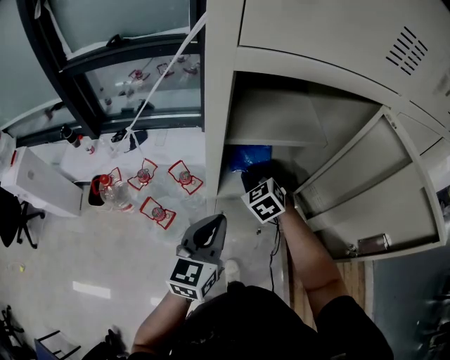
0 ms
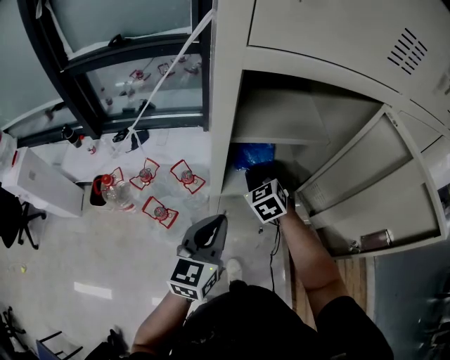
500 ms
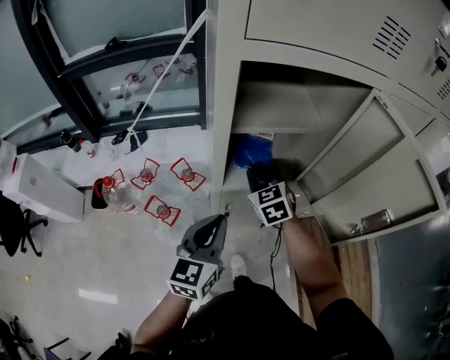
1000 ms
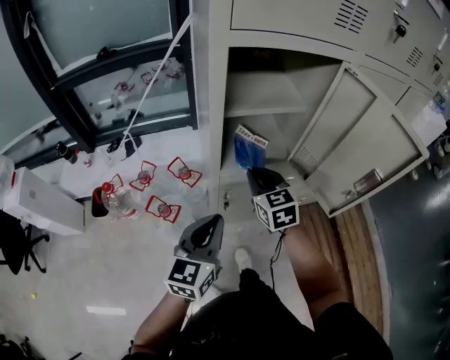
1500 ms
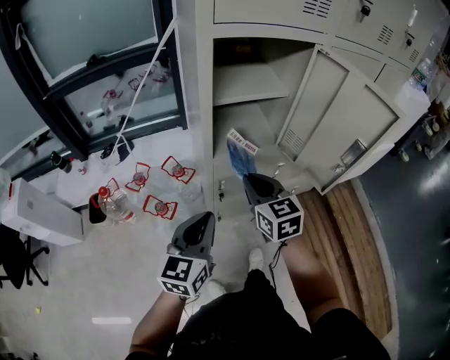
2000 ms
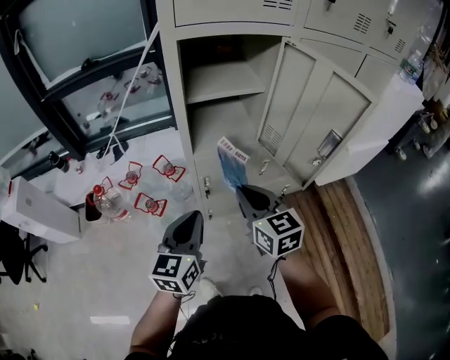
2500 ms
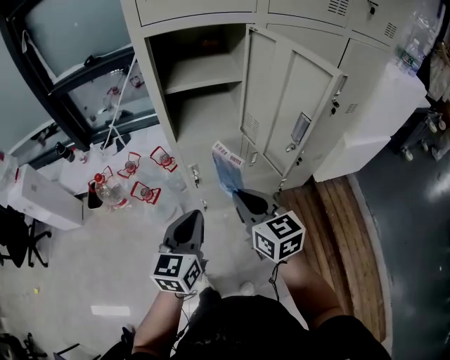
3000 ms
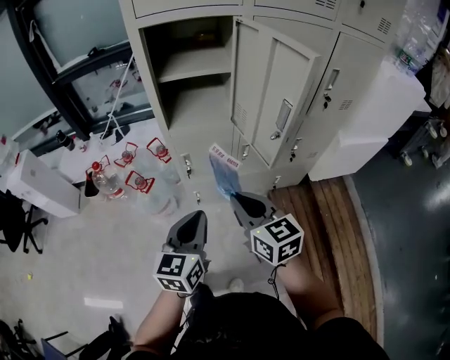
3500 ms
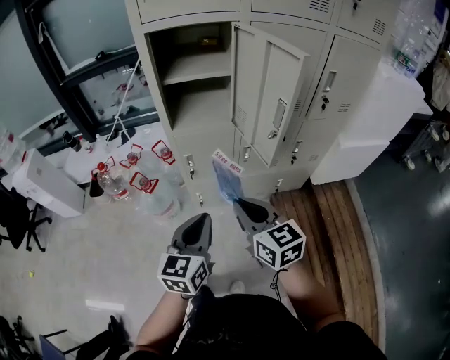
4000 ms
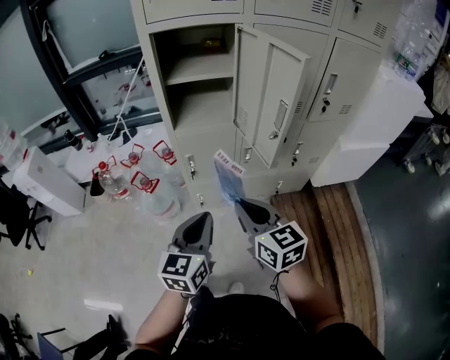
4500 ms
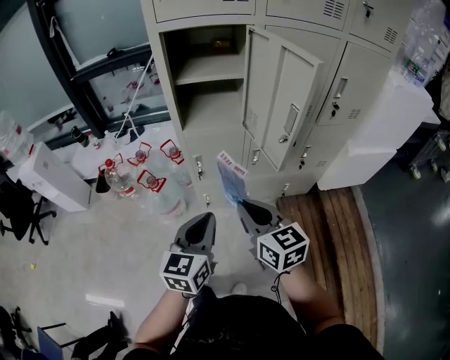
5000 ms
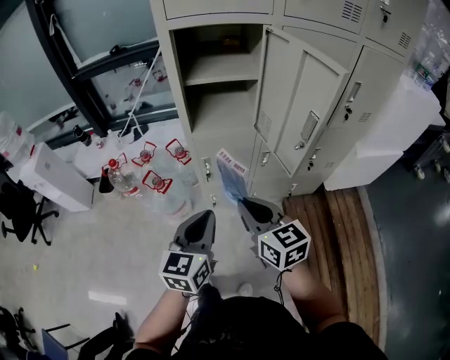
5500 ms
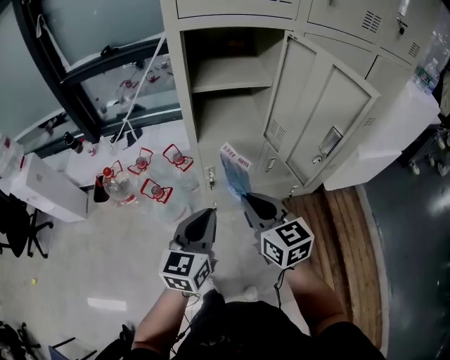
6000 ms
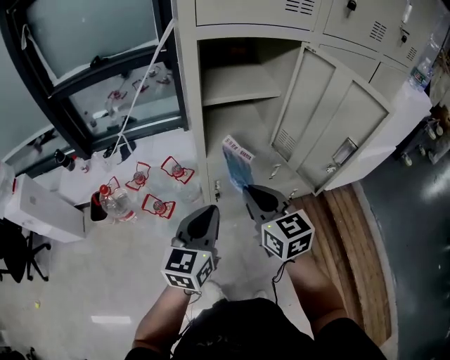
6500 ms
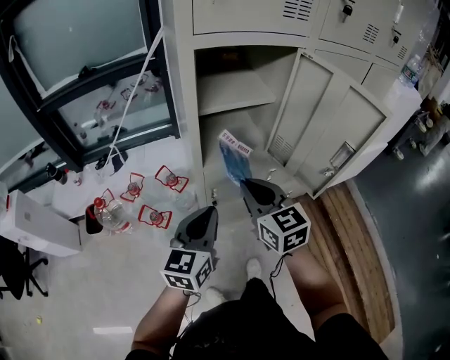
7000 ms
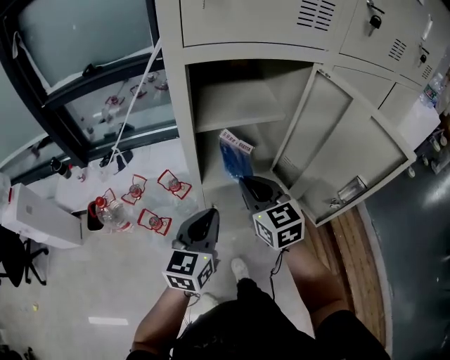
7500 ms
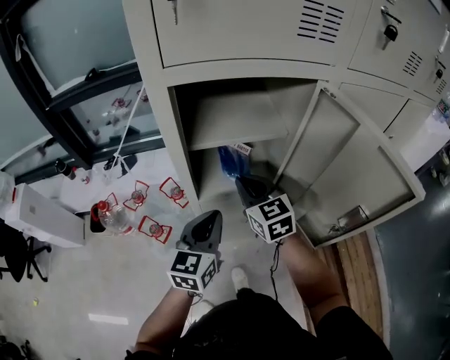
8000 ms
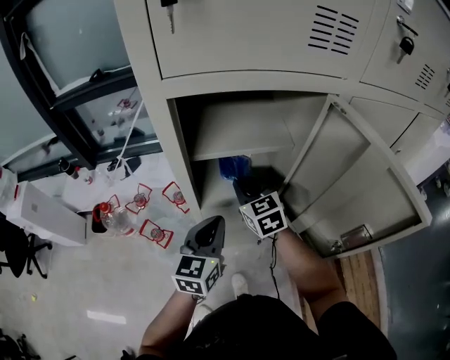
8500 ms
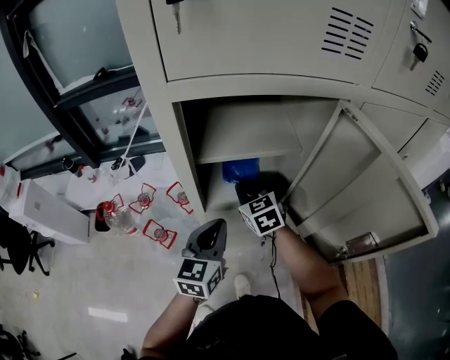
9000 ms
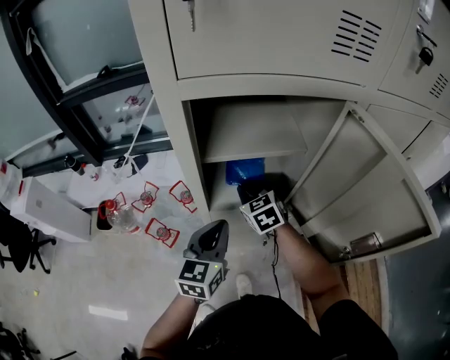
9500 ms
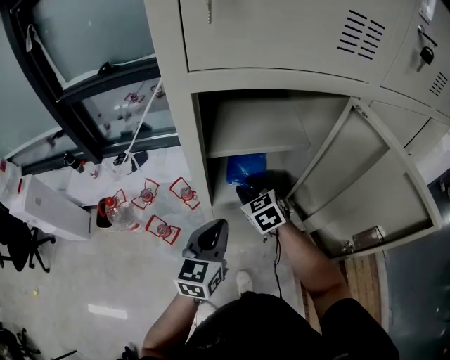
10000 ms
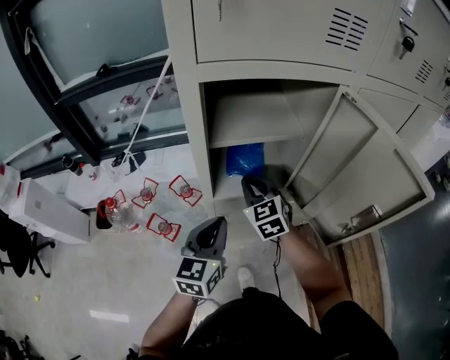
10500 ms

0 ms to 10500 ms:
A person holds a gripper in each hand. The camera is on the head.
0 ms to 2000 ms: The right gripper travels backward and upward by some 25 cm, and swivels approximately 40 degrees, while the left gripper is displaced backward by some 15 cm.
2000 ms to 4000 ms: The left gripper moves to the right and backward, about 25 cm. The right gripper heads backward and to the right, covering some 30 cm.
4000 ms to 6500 ms: The grippers both shift forward and to the left by approximately 20 cm.
6500 ms to 8500 ms: The grippers both shift forward by some 20 cm.
8500 ms to 10500 ms: The right gripper opens and closes again. Meanwhile the left gripper moves approximately 5 cm.

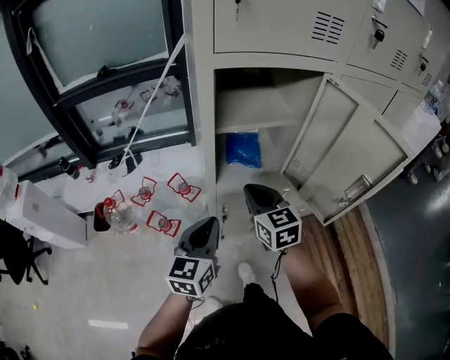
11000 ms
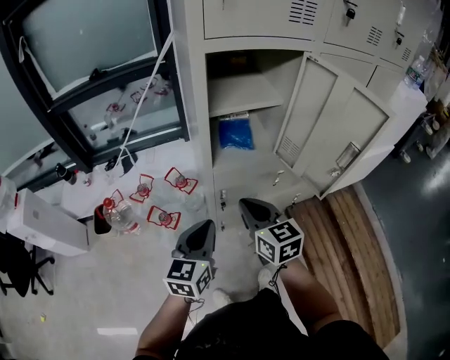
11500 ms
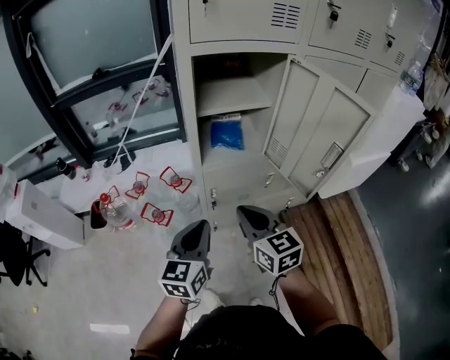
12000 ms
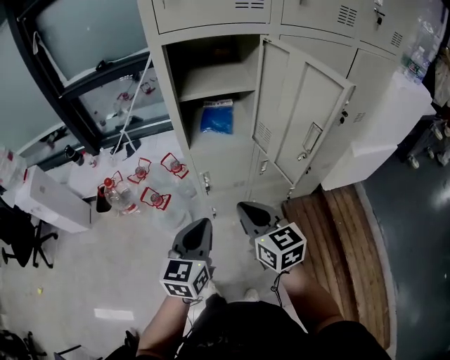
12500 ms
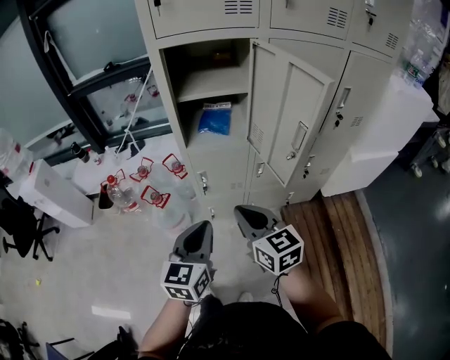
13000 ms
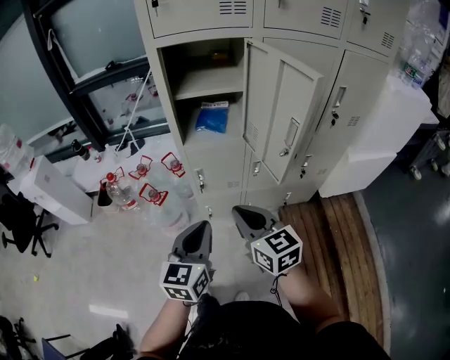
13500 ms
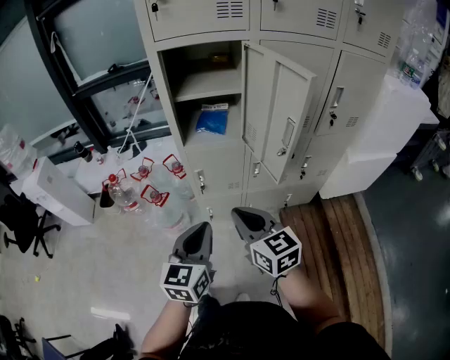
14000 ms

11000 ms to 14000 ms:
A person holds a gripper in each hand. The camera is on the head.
11000 ms to 12500 ms: The right gripper shifts roughly 20 cm backward. The left gripper is displaced backward and to the right by some 15 cm.
12500 ms to 14000 ms: The right gripper goes about 5 cm backward; the left gripper travels backward and to the right by approximately 10 cm.

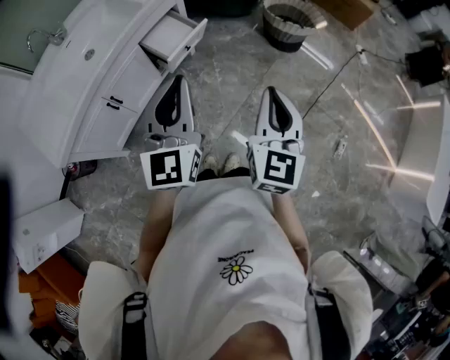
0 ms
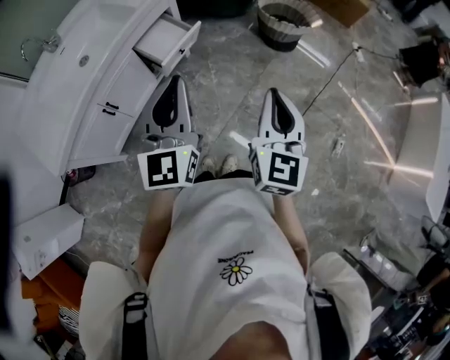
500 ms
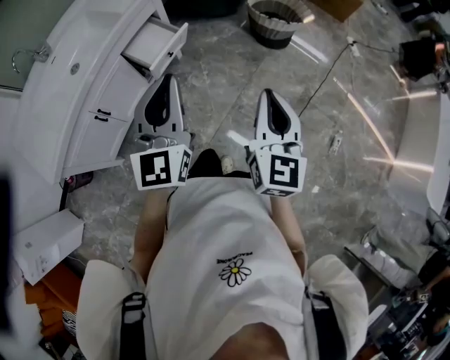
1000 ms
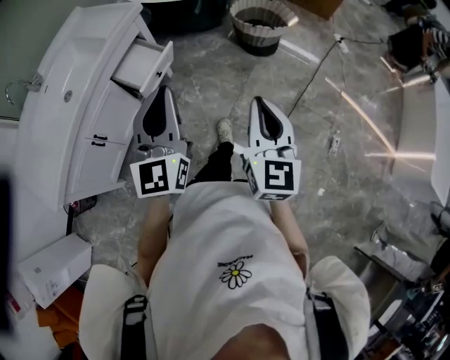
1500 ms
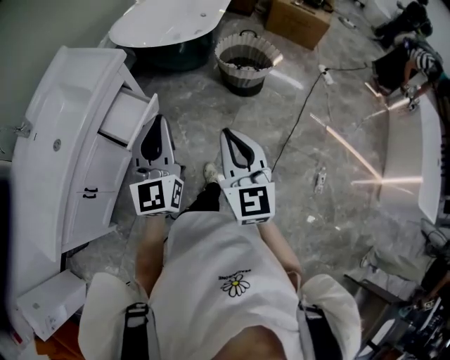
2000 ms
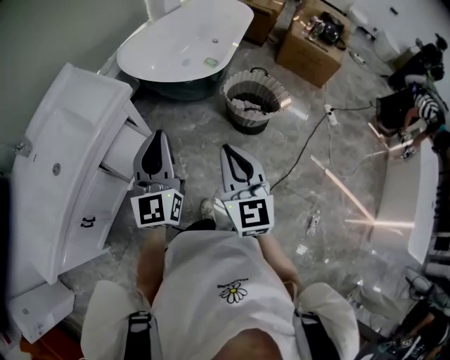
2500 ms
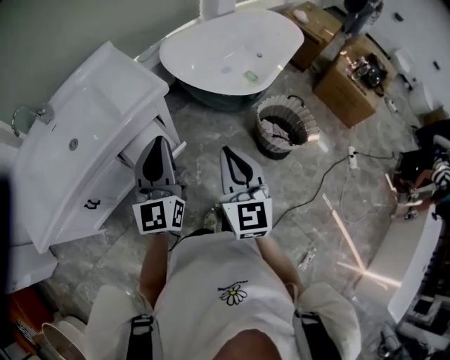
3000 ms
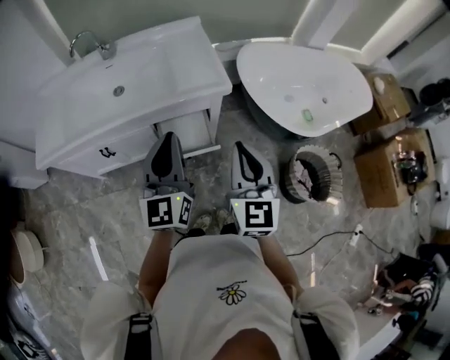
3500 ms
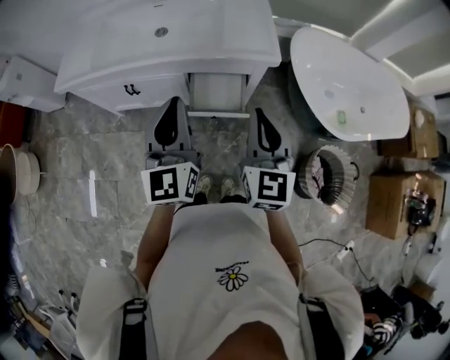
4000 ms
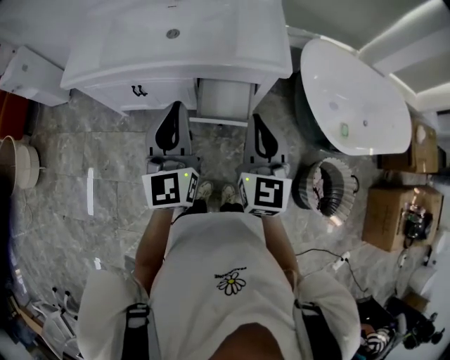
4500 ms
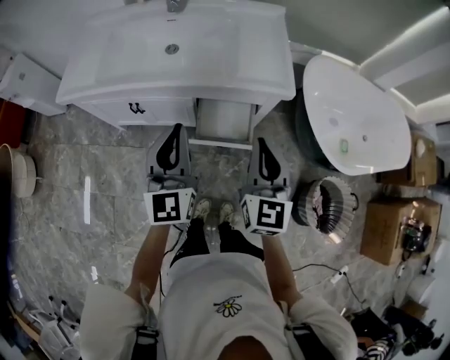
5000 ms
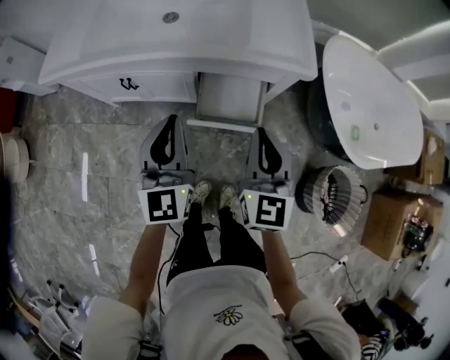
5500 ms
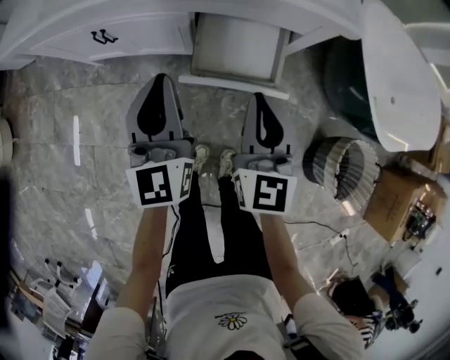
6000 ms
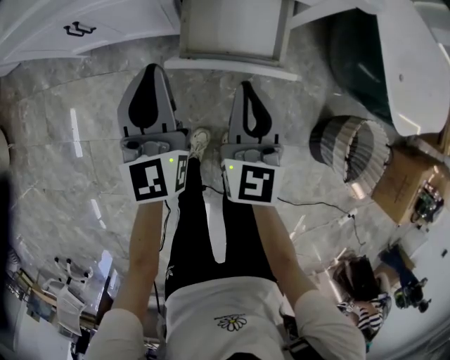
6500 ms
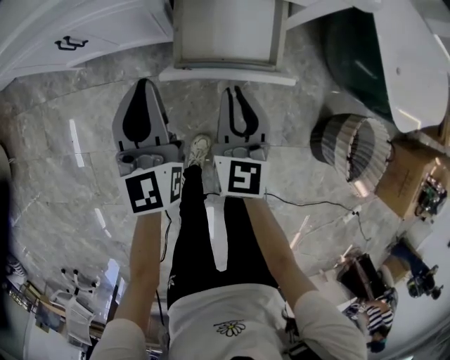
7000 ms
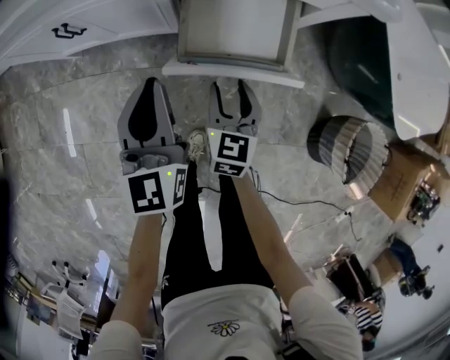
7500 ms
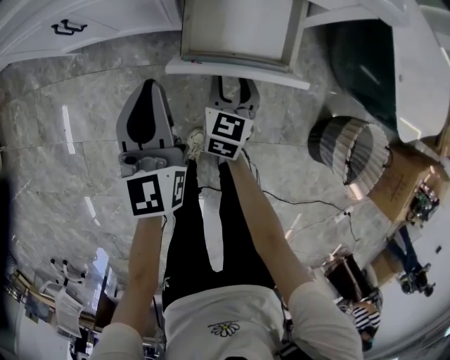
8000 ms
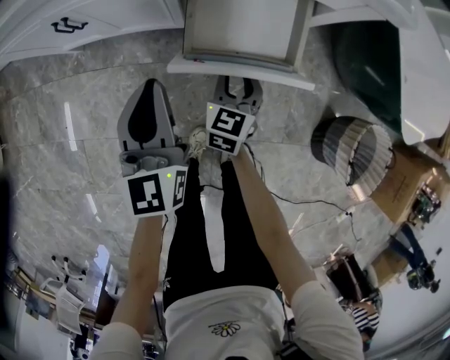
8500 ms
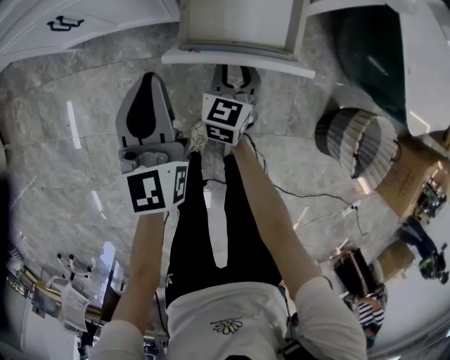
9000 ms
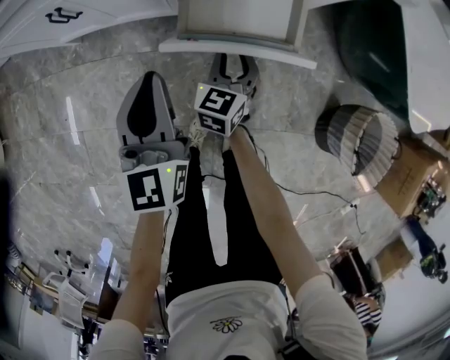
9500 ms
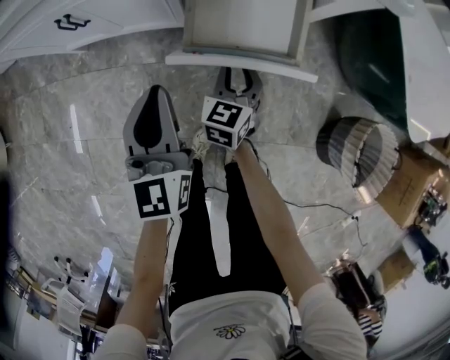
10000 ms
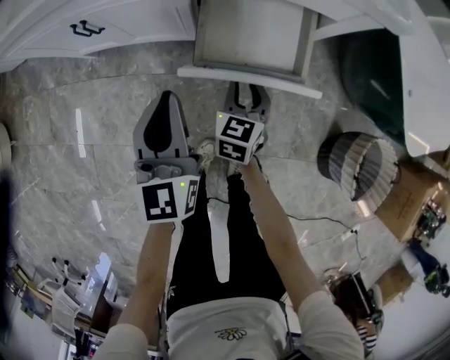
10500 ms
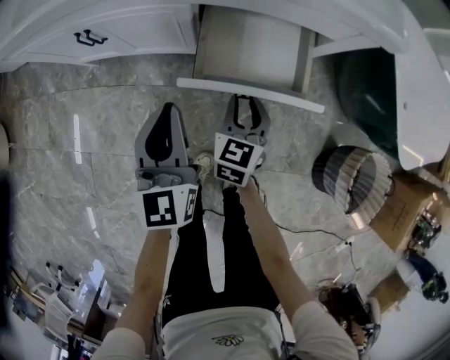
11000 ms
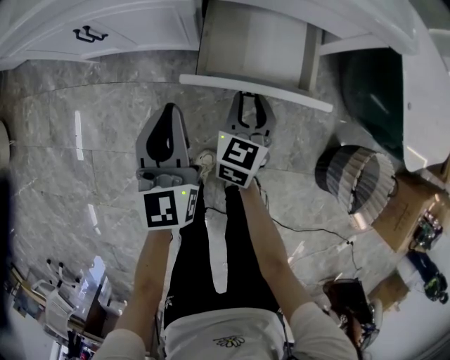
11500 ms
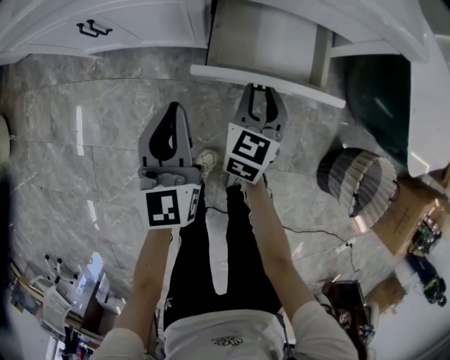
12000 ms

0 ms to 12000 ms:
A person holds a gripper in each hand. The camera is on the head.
0 ms to 2000 ms: The left gripper goes some 20 cm forward and to the right; the right gripper goes roughly 15 cm forward.
2000 ms to 4000 ms: The right gripper ends up roughly 30 cm from where it was, and rotates about 50 degrees. Meanwhile the left gripper shifts by approximately 20 cm, and turns by about 70 degrees.
4000 ms to 6000 ms: The two grippers go about 25 cm downward.
6000 ms to 8000 ms: The right gripper moves downward, about 25 cm, swivels some 30 degrees, and opens its fingers, while the left gripper moves downward, about 10 cm.
8000 ms to 10000 ms: There are only small adjustments of the grippers.
10000 ms to 12000 ms: The right gripper shifts by roughly 5 cm.

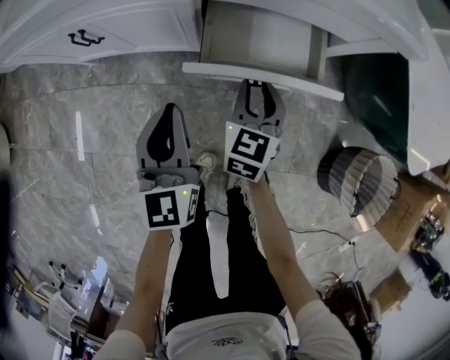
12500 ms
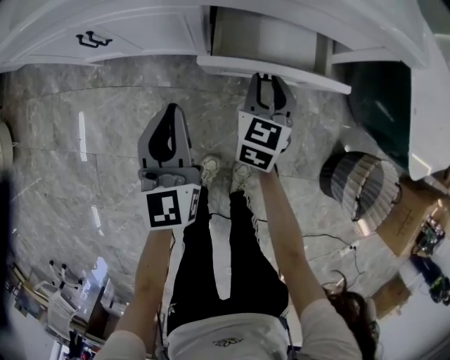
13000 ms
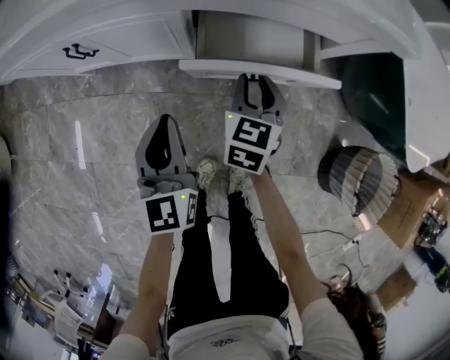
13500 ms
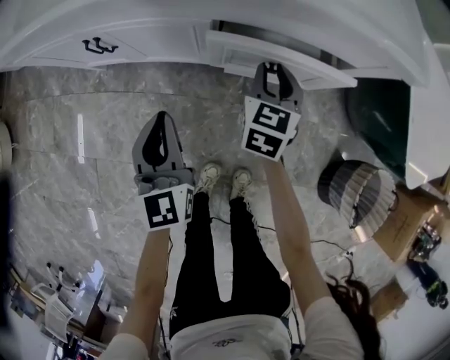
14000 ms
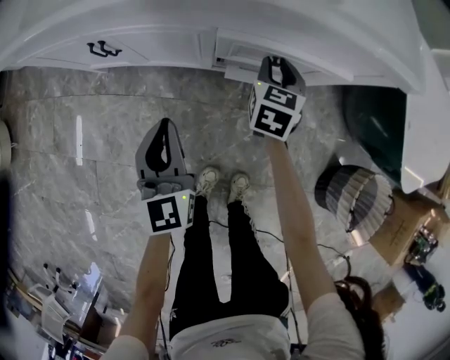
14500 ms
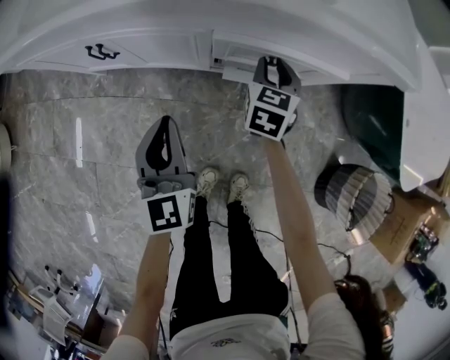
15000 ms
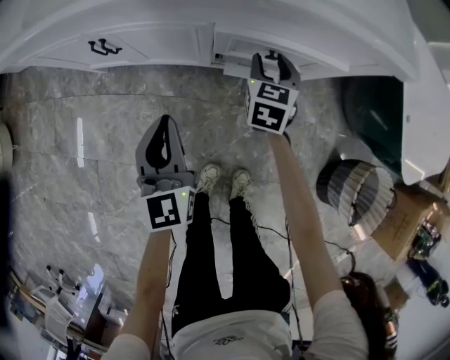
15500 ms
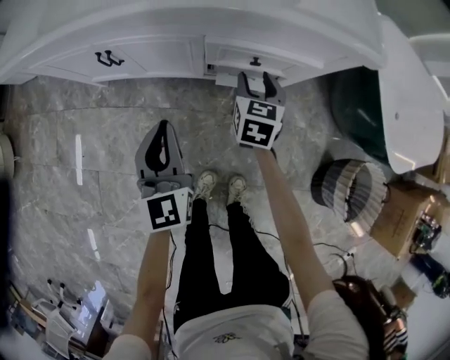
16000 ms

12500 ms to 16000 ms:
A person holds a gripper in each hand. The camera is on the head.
12500 ms to 14500 ms: The left gripper travels to the left by approximately 5 cm. Meanwhile the right gripper is displaced forward by some 10 cm.
14500 ms to 16000 ms: The right gripper shifts some 5 cm backward. Meanwhile the left gripper is displaced upward by roughly 5 cm.
